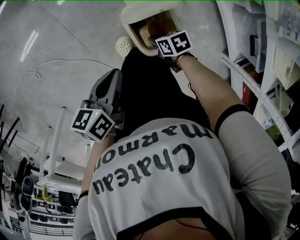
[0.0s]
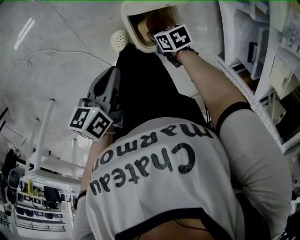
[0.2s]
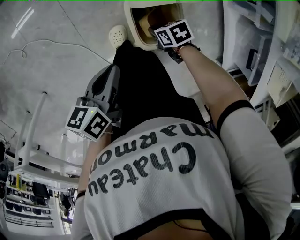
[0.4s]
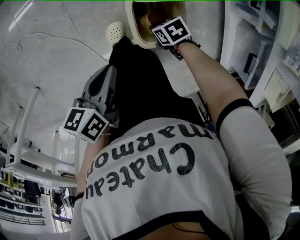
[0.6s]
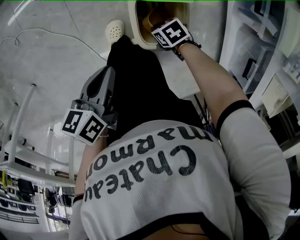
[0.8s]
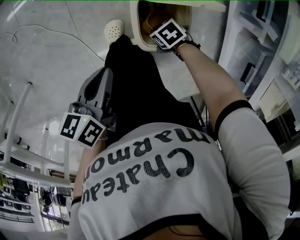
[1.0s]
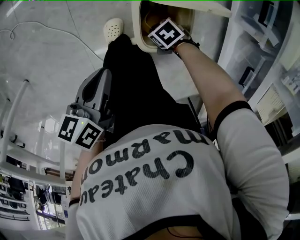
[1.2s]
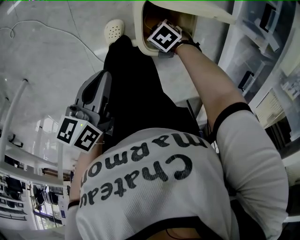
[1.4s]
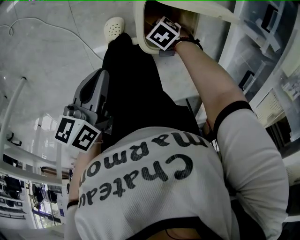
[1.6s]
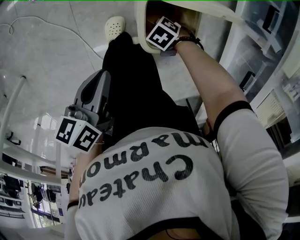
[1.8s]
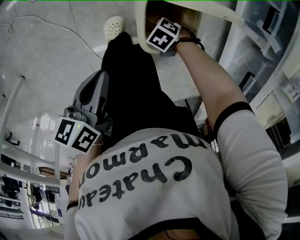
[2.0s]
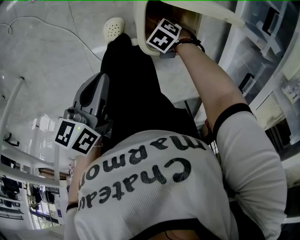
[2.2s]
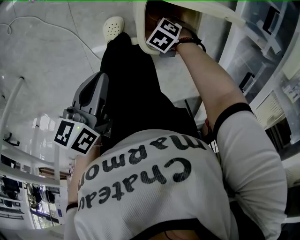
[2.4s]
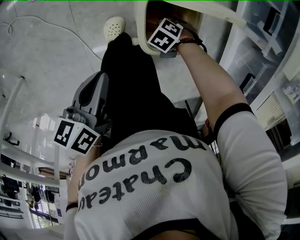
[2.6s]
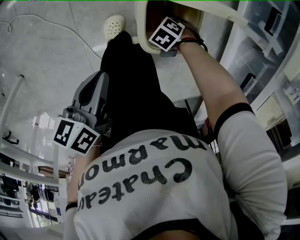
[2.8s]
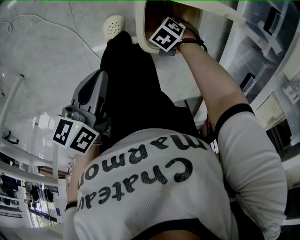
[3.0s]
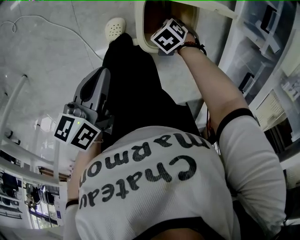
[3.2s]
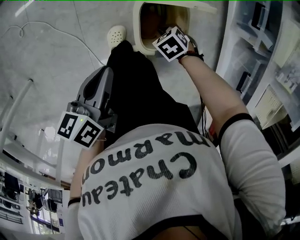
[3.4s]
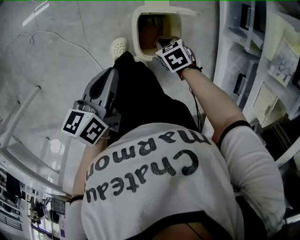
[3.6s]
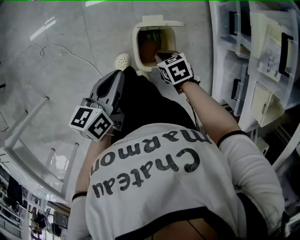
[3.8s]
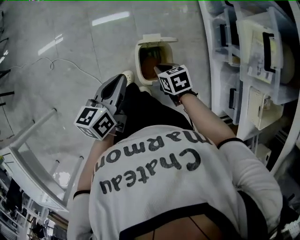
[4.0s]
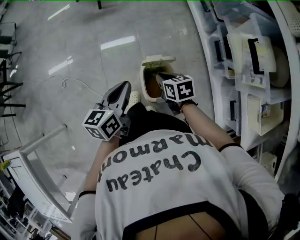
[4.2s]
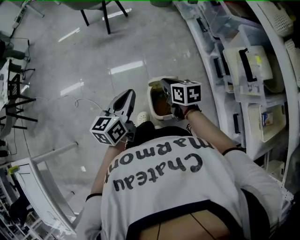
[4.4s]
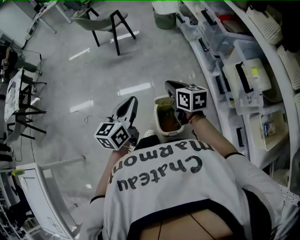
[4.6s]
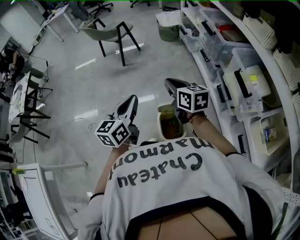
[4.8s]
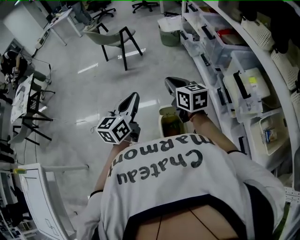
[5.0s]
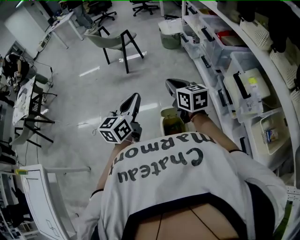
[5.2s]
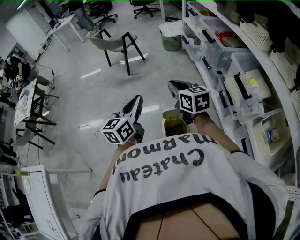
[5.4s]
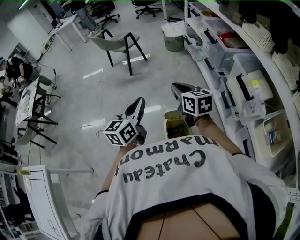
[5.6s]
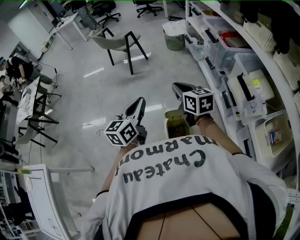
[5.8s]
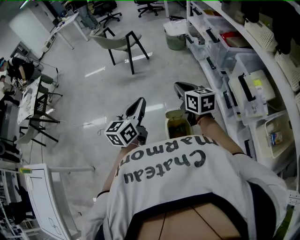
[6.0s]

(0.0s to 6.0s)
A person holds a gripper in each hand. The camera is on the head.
0.0s - 1.6s: The left gripper ends up approximately 10 cm from where it was, and swivels about 20 degrees. Meanwhile the right gripper is displaced downward by some 10 cm, and twists roughly 50 degrees counterclockwise, seen from behind.
1.6s - 3.0s: The grippers stay close to where they were, moving slightly.
3.0s - 4.4s: The left gripper moves upward, about 30 cm, and rotates some 40 degrees; the right gripper heads upward, covering about 50 cm, and tilts its fingers some 50 degrees upward.
4.4s - 6.0s: The right gripper heads upward, covering approximately 20 cm, and turns by roughly 20 degrees. Meanwhile the left gripper shifts some 10 cm upward.

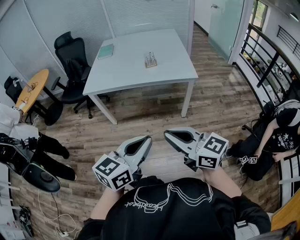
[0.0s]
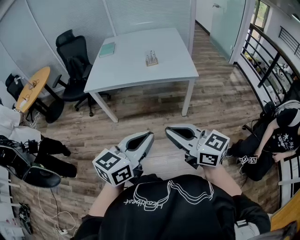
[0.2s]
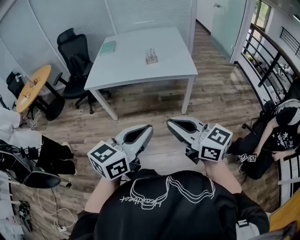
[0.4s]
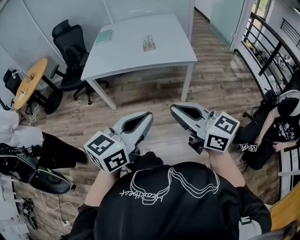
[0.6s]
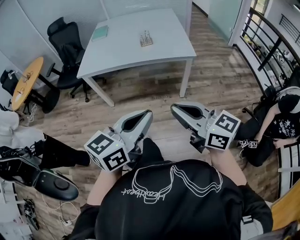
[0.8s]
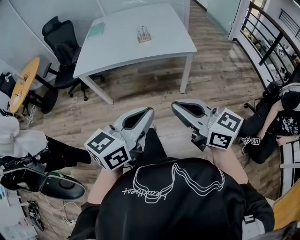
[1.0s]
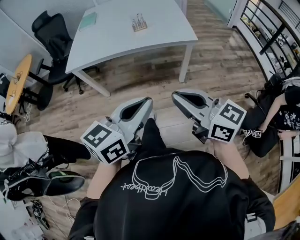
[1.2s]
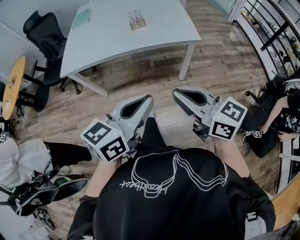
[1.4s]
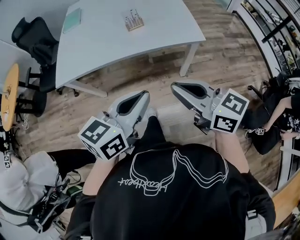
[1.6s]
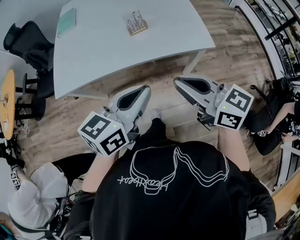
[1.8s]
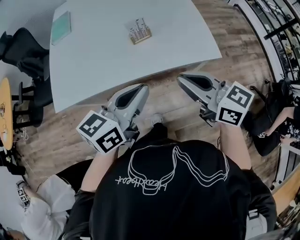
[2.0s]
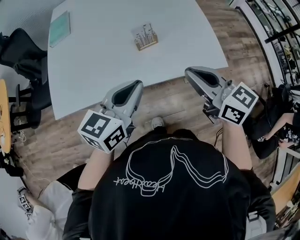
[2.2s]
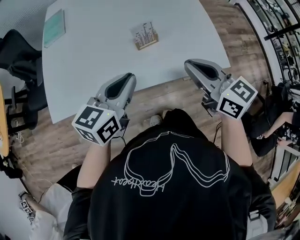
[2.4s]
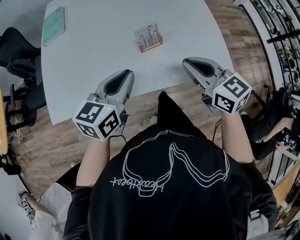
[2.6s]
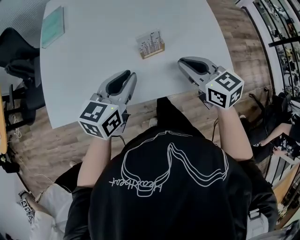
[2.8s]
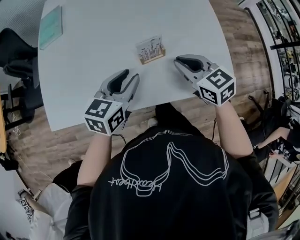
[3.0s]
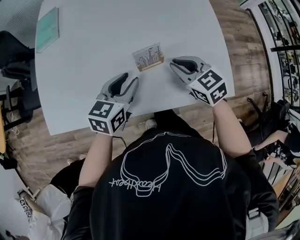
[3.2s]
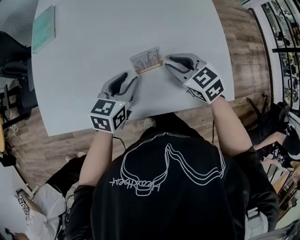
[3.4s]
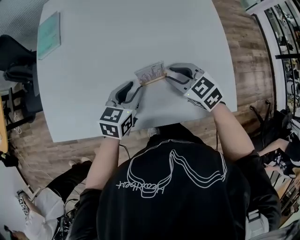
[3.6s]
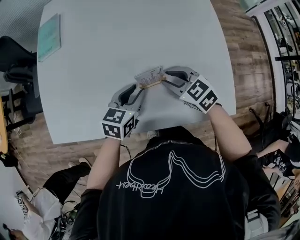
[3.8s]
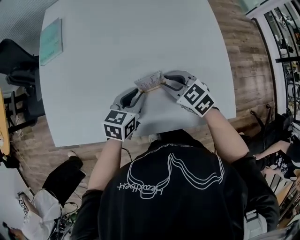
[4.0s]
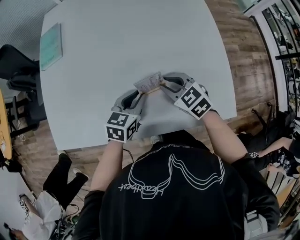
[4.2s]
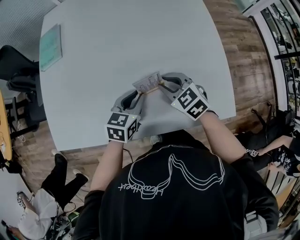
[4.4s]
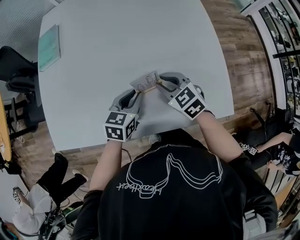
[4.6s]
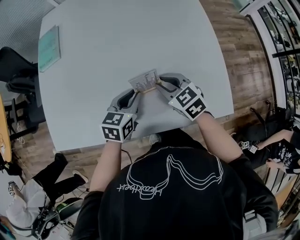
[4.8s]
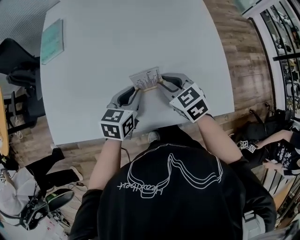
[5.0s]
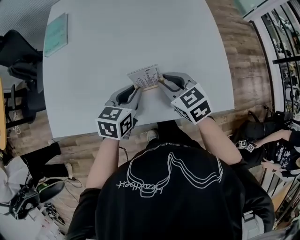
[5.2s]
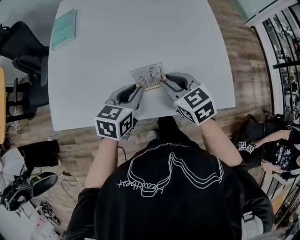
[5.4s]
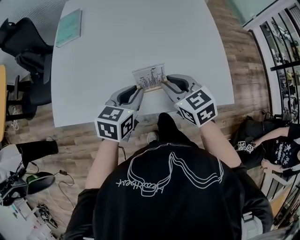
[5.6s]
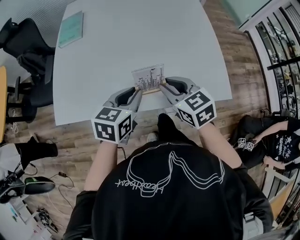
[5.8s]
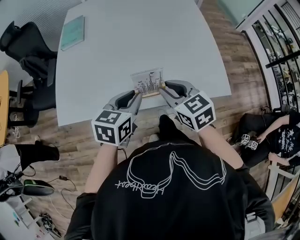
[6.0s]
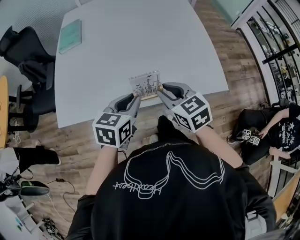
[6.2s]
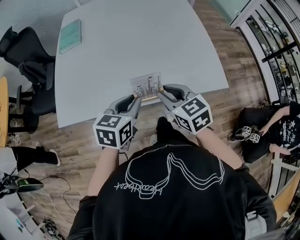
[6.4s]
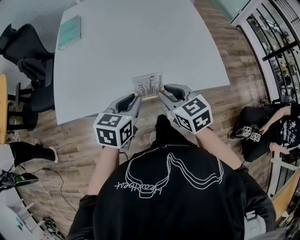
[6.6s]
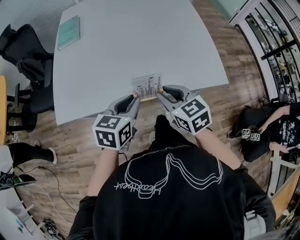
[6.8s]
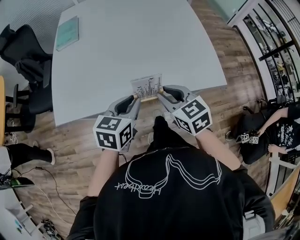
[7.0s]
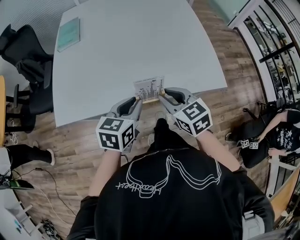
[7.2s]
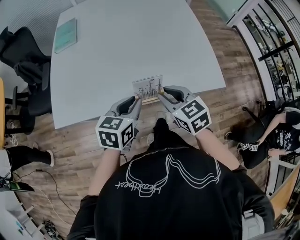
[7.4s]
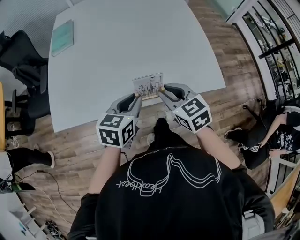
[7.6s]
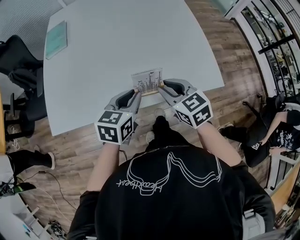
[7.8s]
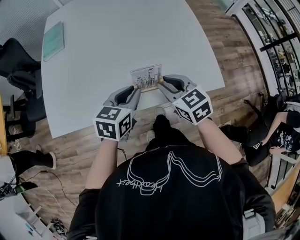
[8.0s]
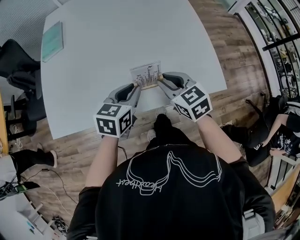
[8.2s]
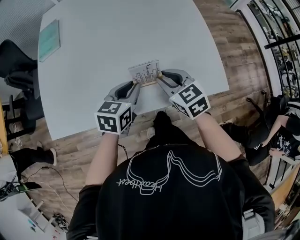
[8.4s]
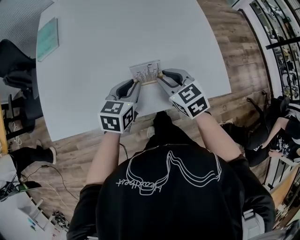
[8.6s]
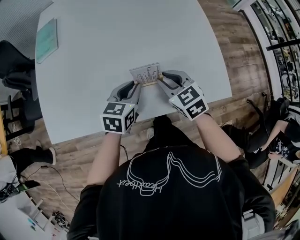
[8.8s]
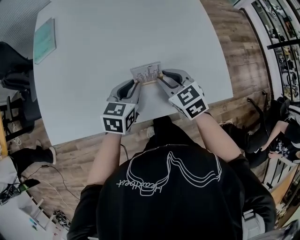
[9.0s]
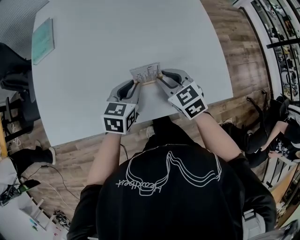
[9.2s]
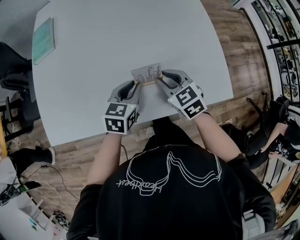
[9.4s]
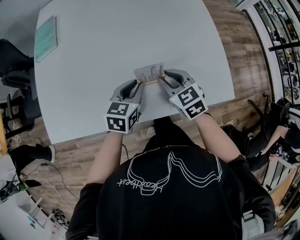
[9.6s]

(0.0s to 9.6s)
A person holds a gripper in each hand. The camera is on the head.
0.0s - 1.6s: The grippers both shift forward by about 30 cm.
1.6s - 3.2s: Both grippers are carried forward, approximately 50 cm. The left gripper opens its fingers. Meanwhile the right gripper shifts some 20 cm downward, and tips its fingers downward by about 30 degrees.
3.2s - 4.8s: The left gripper shifts by about 5 cm. The right gripper shifts by approximately 5 cm.
4.8s - 6.4s: The grippers both shift backward and upward by about 20 cm.
6.4s - 8.0s: Both grippers travel together forward and to the right, about 10 cm.
8.0s - 9.6s: The two grippers go some 10 cm downward and forward.

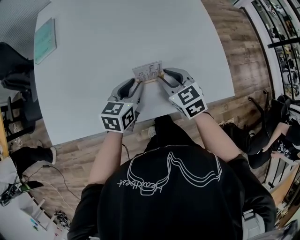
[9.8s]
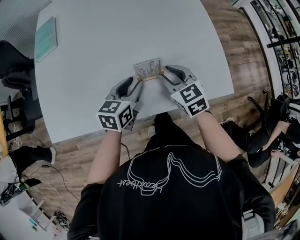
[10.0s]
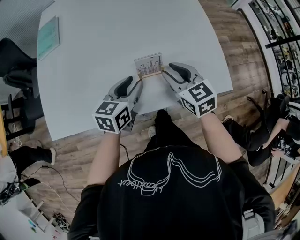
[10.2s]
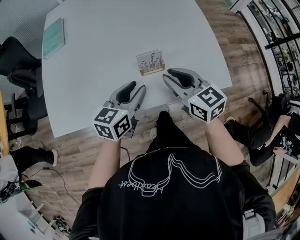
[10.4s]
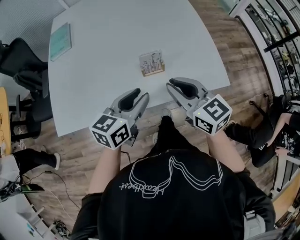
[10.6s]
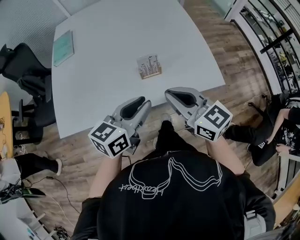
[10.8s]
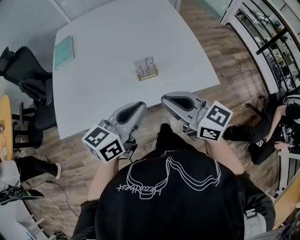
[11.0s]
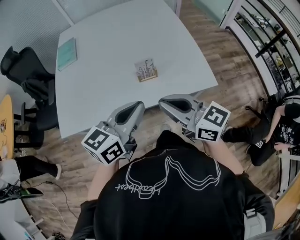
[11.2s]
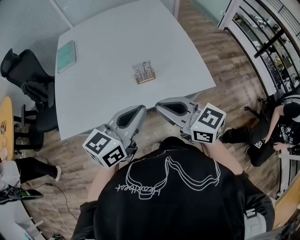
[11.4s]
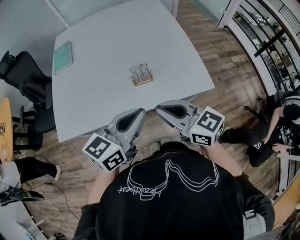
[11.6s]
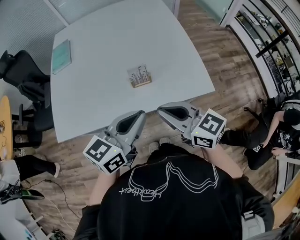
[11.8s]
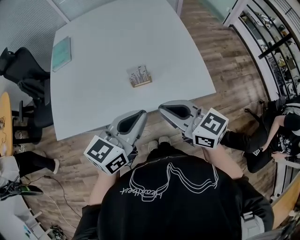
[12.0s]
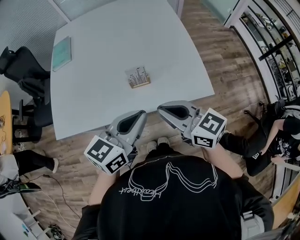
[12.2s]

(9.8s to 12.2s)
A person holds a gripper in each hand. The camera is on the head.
9.8s - 11.0s: The two grippers go some 30 cm upward and backward. The left gripper changes its angle by approximately 30 degrees, while the right gripper tilts its fingers some 30 degrees upward, and closes up.
11.0s - 12.2s: The left gripper shifts about 5 cm to the right.

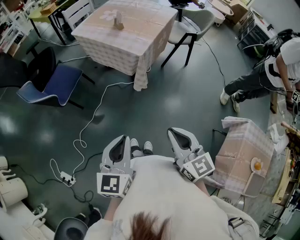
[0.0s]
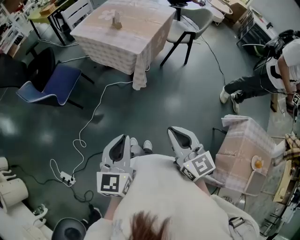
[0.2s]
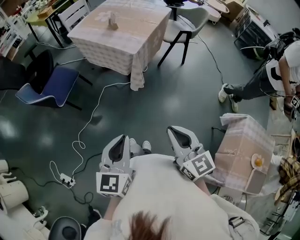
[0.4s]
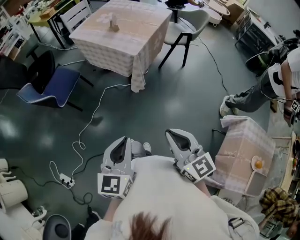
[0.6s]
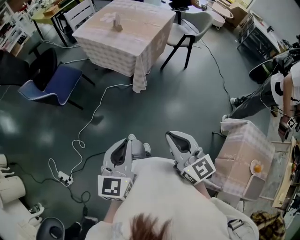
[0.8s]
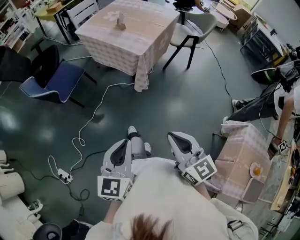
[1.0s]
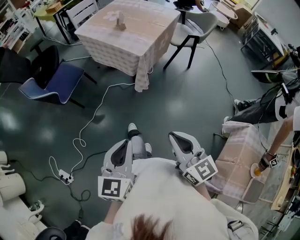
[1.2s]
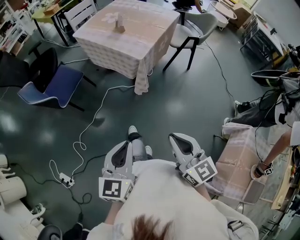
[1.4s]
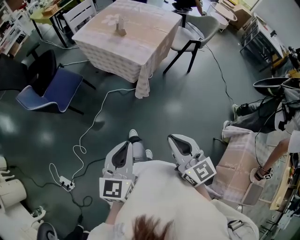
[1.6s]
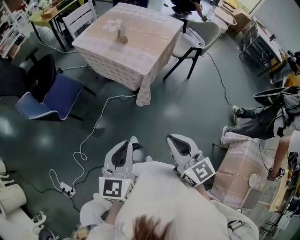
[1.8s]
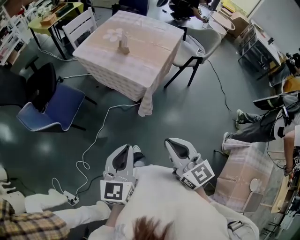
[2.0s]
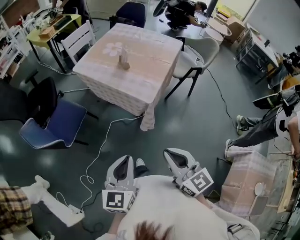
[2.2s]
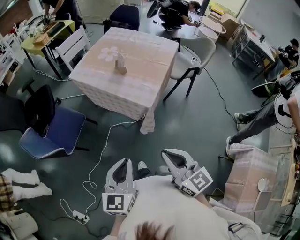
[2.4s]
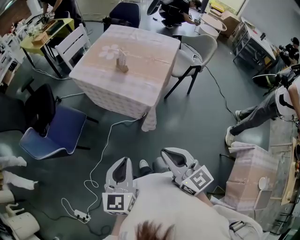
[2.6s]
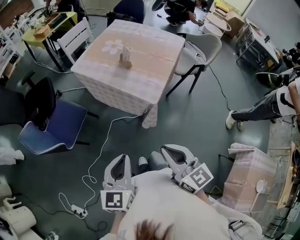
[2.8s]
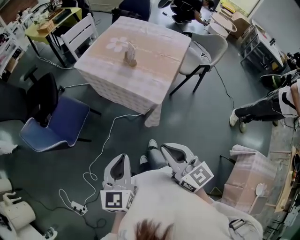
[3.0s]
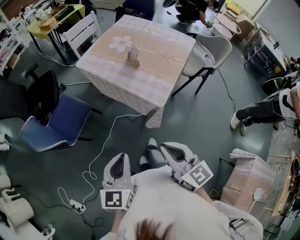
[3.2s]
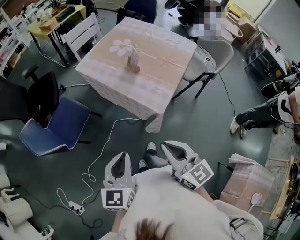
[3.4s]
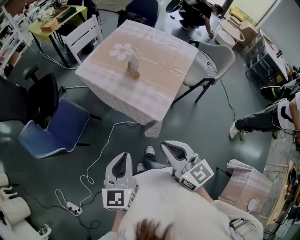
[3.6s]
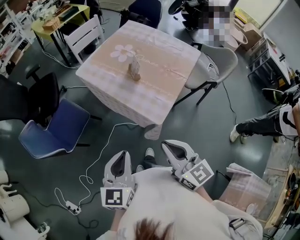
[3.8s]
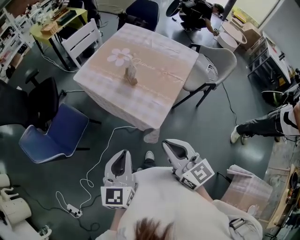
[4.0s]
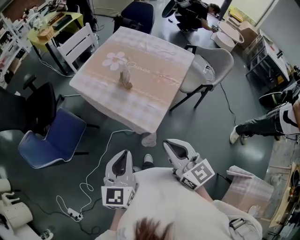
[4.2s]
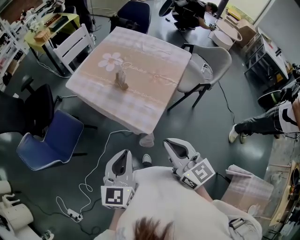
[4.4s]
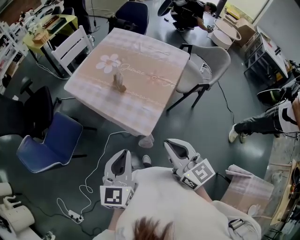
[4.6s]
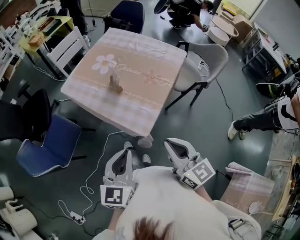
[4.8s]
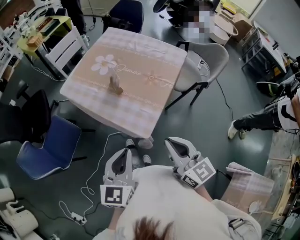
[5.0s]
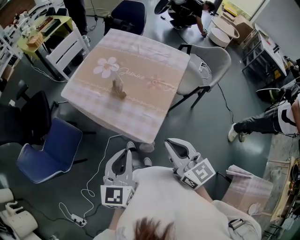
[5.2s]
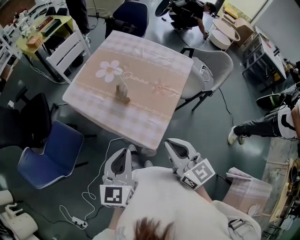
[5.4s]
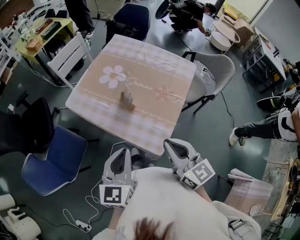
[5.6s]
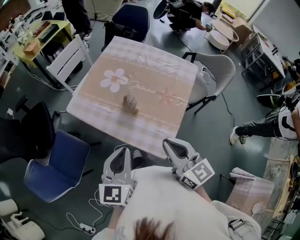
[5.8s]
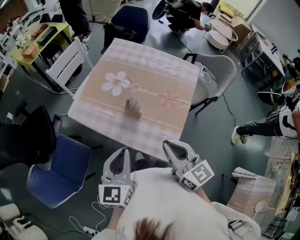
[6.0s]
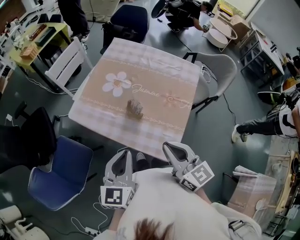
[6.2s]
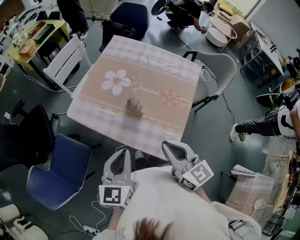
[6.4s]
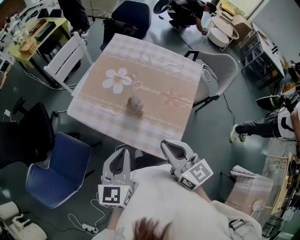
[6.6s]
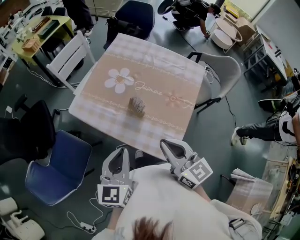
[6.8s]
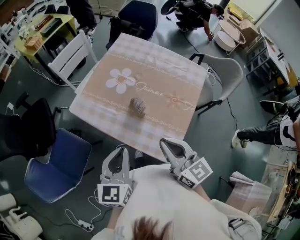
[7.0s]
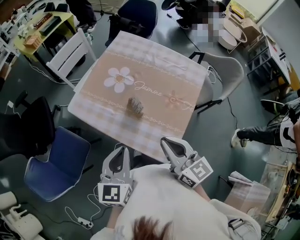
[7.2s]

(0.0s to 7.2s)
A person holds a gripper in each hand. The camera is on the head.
0.0s - 1.4s: The grippers make only small movements.
1.4s - 2.8s: The left gripper shifts about 25 cm forward. Meanwhile the right gripper travels forward and to the left by roughly 25 cm.
2.8s - 4.4s: Both grippers move forward and to the right, roughly 20 cm.
4.4s - 5.8s: Both grippers travel together forward, approximately 15 cm.
5.8s - 7.2s: The right gripper goes approximately 5 cm forward. The left gripper moves about 5 cm.
